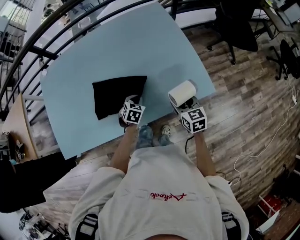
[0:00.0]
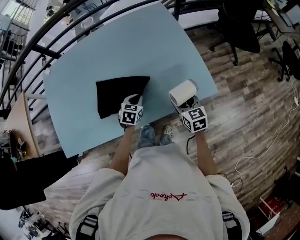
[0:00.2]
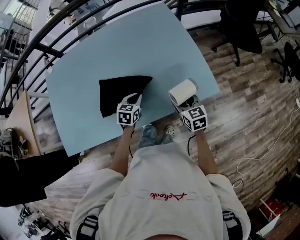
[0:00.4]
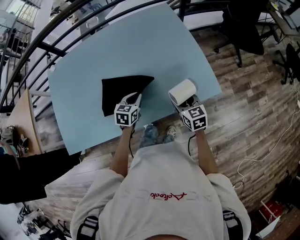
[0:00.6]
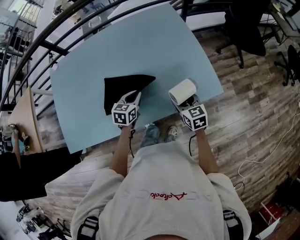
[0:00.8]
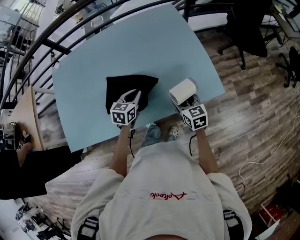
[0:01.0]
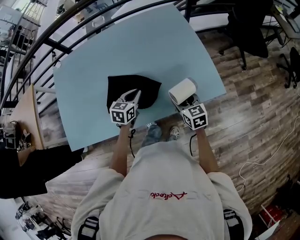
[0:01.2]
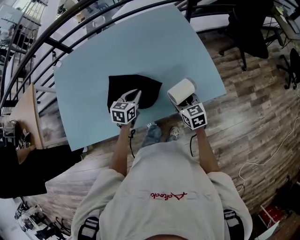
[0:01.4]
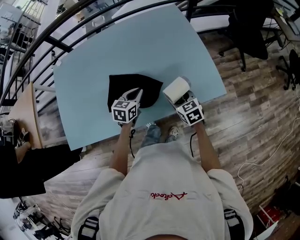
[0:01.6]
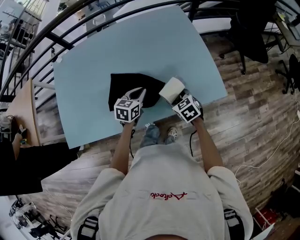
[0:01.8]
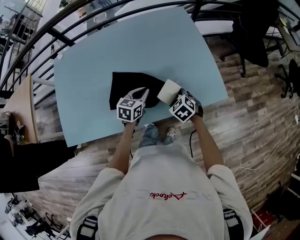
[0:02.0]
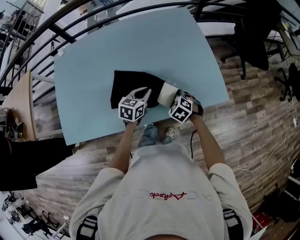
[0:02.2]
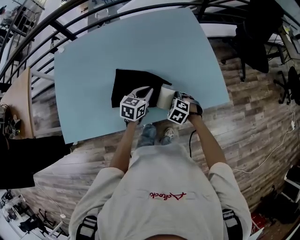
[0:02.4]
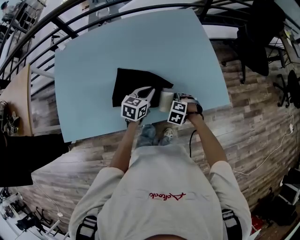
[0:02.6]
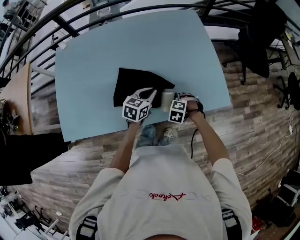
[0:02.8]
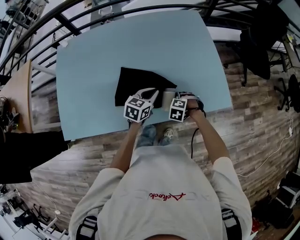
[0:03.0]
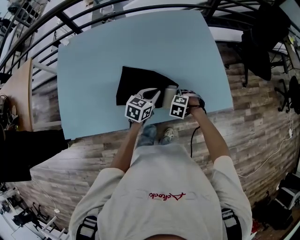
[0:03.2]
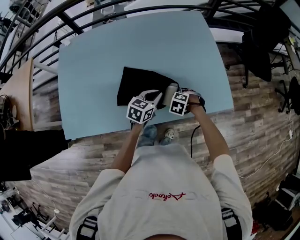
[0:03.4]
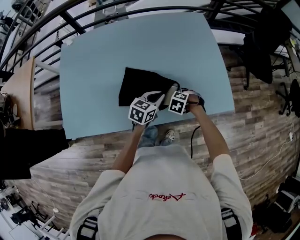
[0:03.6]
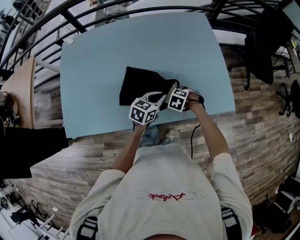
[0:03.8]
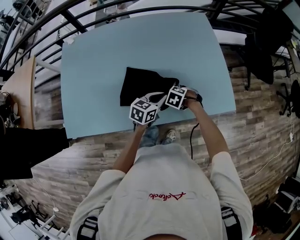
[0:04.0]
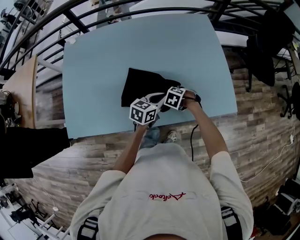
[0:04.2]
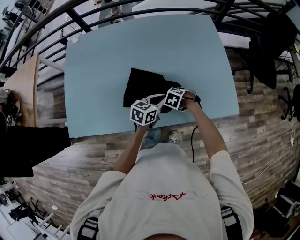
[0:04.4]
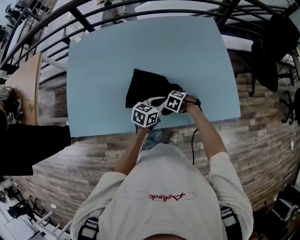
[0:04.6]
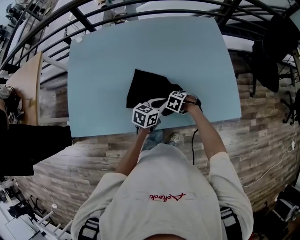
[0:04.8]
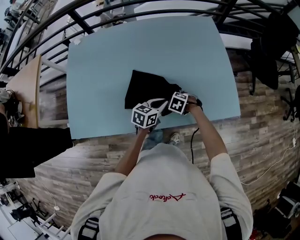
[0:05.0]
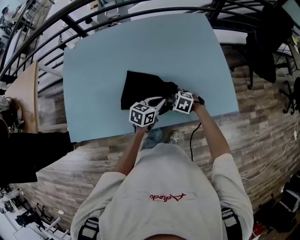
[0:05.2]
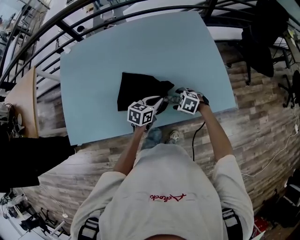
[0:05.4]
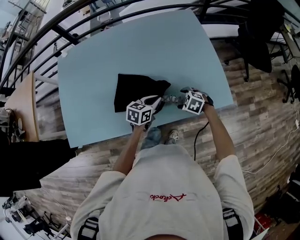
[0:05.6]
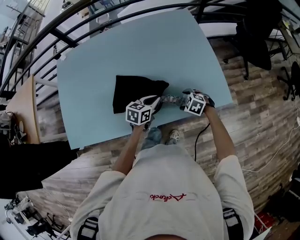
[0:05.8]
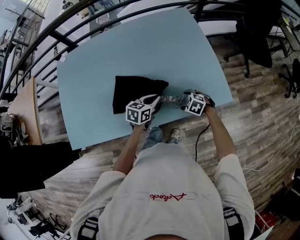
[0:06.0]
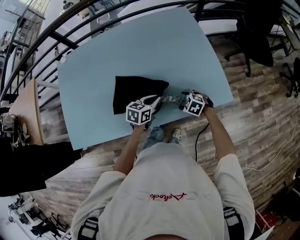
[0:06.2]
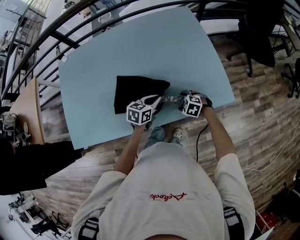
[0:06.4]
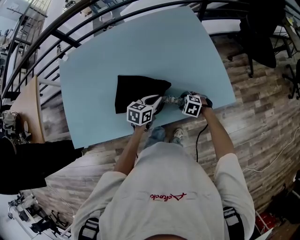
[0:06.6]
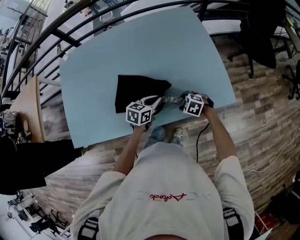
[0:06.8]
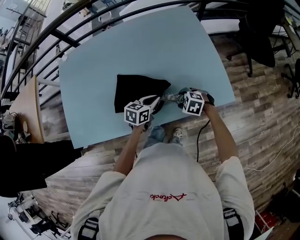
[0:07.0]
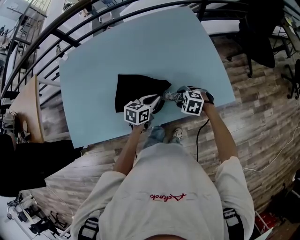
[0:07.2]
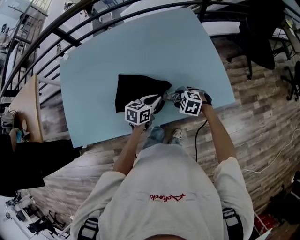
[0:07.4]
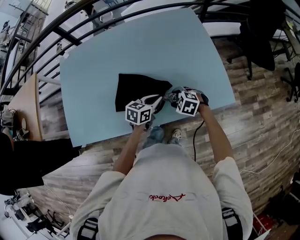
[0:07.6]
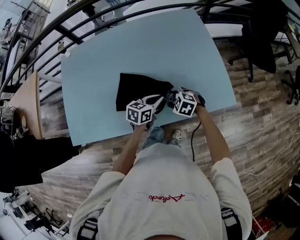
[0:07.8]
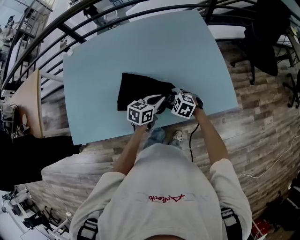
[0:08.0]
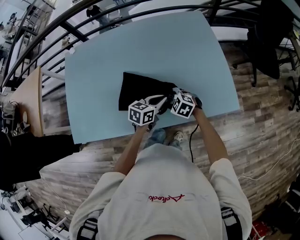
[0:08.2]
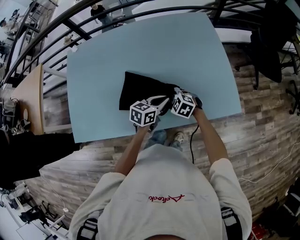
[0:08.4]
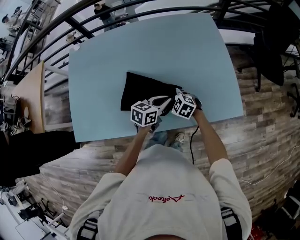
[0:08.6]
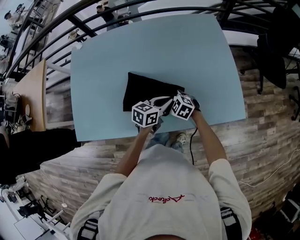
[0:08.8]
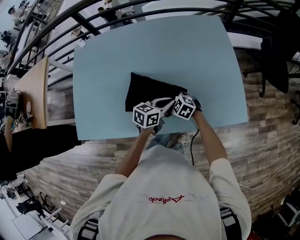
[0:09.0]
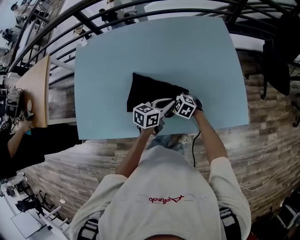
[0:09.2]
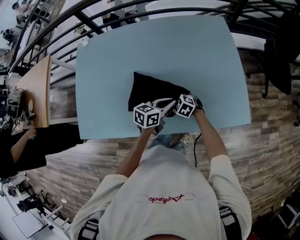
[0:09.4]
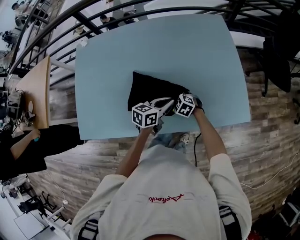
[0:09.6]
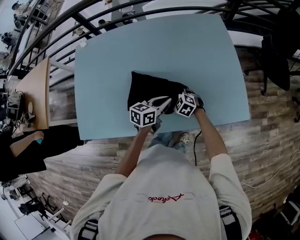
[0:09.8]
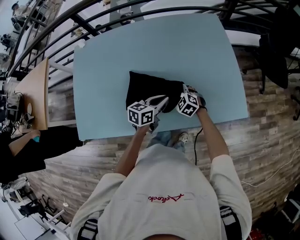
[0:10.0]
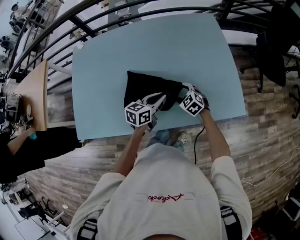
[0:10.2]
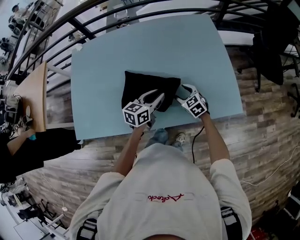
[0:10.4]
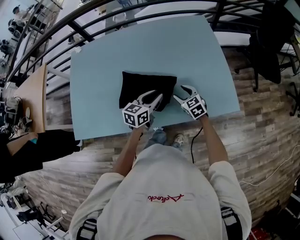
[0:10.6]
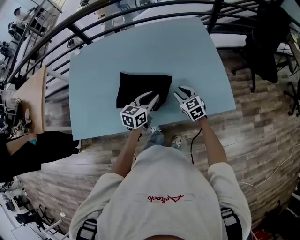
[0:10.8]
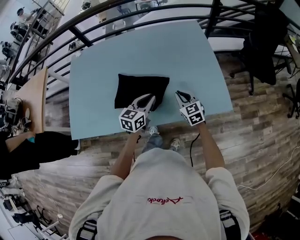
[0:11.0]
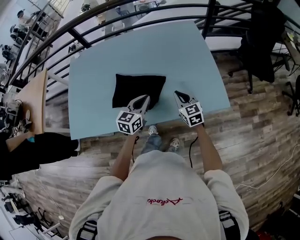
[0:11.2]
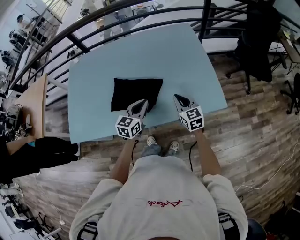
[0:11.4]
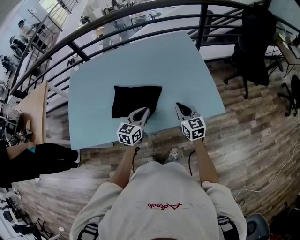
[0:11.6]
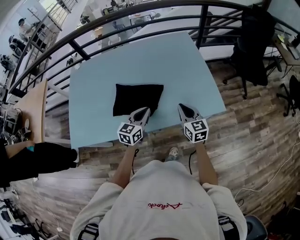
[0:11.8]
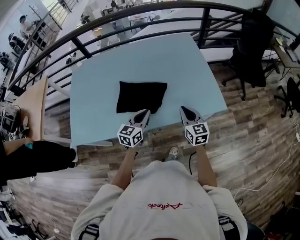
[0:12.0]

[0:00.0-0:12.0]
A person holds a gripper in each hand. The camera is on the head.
0:00.0 to 0:01.6: The right gripper moves to the left, approximately 10 cm. Meanwhile the left gripper is displaced upward and to the left by some 10 cm, and rotates some 30 degrees.
0:01.6 to 0:03.0: The right gripper shifts roughly 10 cm downward, and points its fingers approximately 40 degrees further downward.
0:03.0 to 0:04.4: The right gripper changes place by roughly 10 cm.
0:04.4 to 0:06.0: The right gripper changes place by about 15 cm. The left gripper moves roughly 5 cm.
0:06.0 to 0:07.6: The right gripper ends up some 10 cm from where it was.
0:07.6 to 0:09.0: The right gripper goes approximately 15 cm to the left and forward.
0:09.0 to 0:10.4: The right gripper moves to the right, approximately 10 cm, and turns by roughly 30 degrees.
0:10.4 to 0:12.0: The right gripper heads upward, backward and to the right, covering some 20 cm, swivels some 40 degrees, and closes up. The left gripper heads backward, covering roughly 10 cm, and closes its fingers.

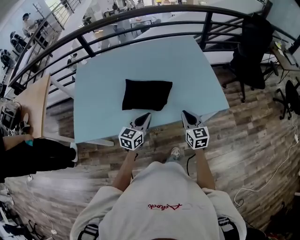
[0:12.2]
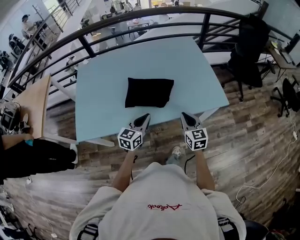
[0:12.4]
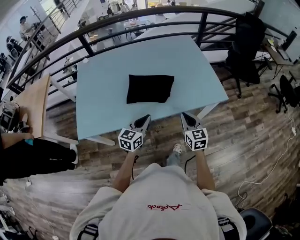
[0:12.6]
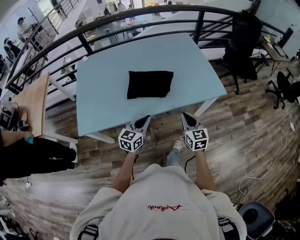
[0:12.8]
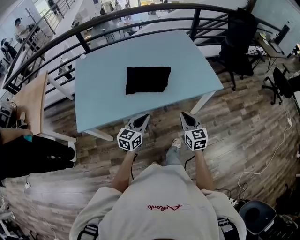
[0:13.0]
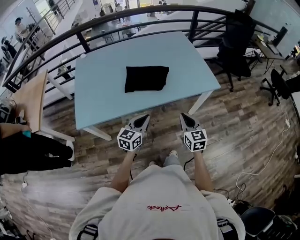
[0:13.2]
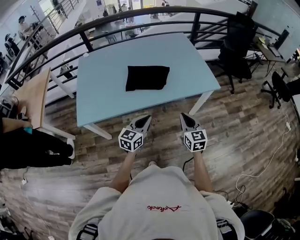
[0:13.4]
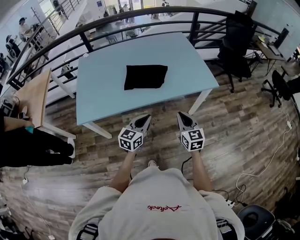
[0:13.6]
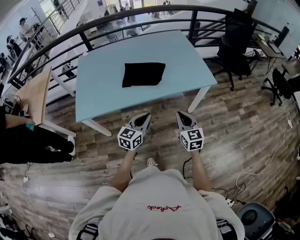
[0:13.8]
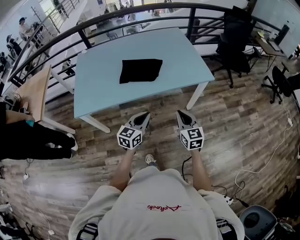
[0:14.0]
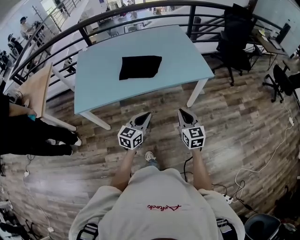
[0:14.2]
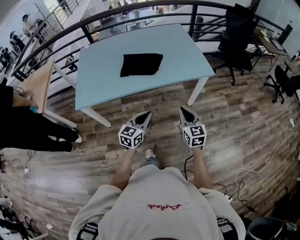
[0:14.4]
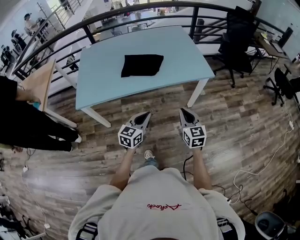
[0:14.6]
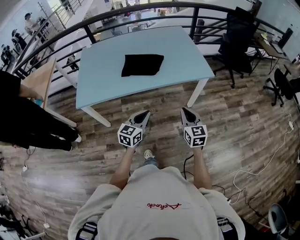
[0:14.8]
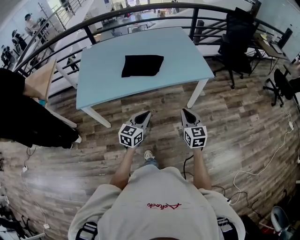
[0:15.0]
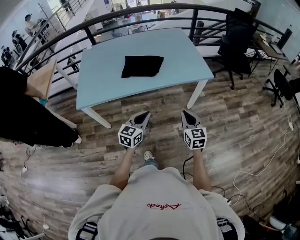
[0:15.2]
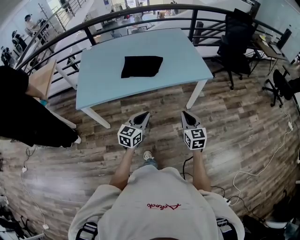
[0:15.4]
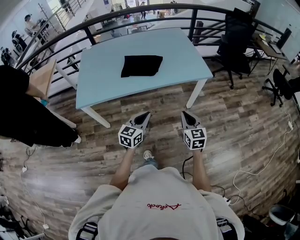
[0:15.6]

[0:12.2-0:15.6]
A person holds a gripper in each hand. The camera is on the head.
0:12.2 to 0:13.8: Both grippers travel together backward, about 25 cm.
0:13.8 to 0:15.6: The left gripper goes roughly 10 cm backward. The right gripper goes approximately 10 cm to the right and backward.

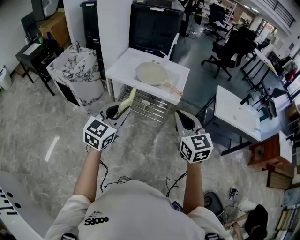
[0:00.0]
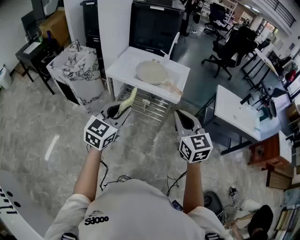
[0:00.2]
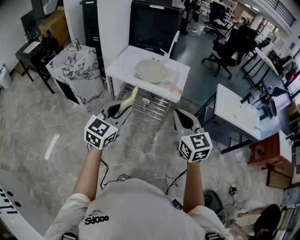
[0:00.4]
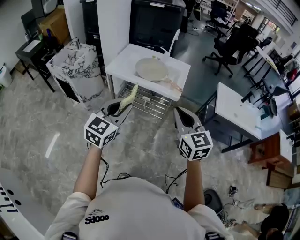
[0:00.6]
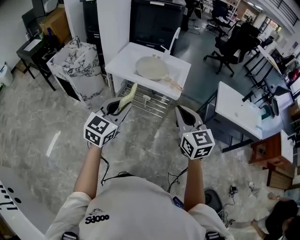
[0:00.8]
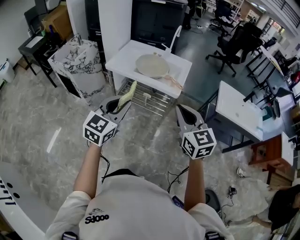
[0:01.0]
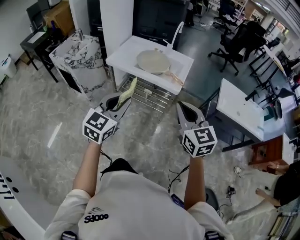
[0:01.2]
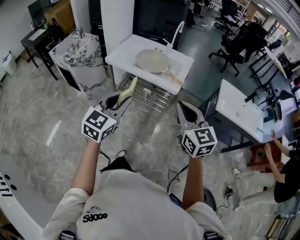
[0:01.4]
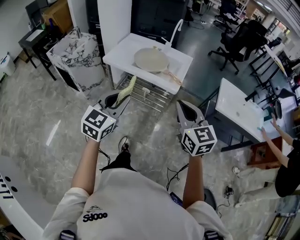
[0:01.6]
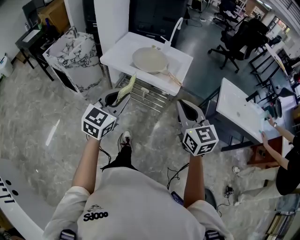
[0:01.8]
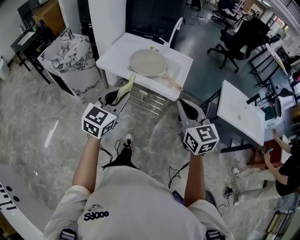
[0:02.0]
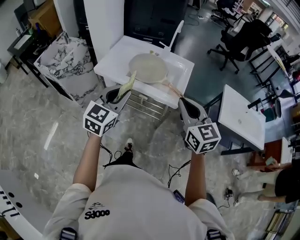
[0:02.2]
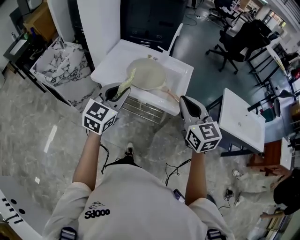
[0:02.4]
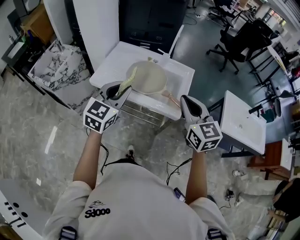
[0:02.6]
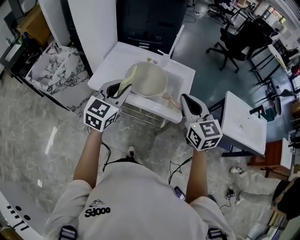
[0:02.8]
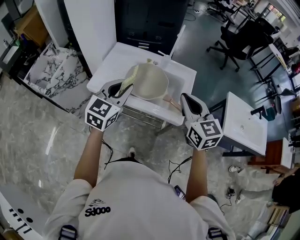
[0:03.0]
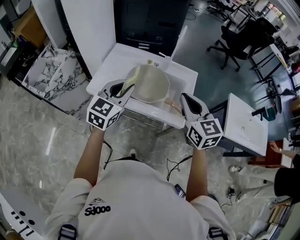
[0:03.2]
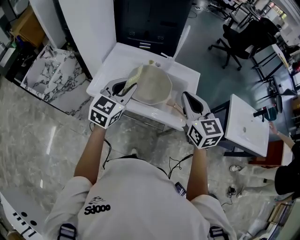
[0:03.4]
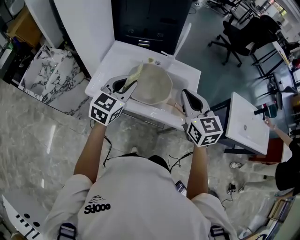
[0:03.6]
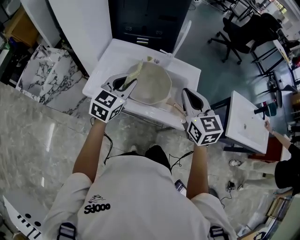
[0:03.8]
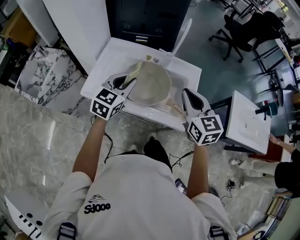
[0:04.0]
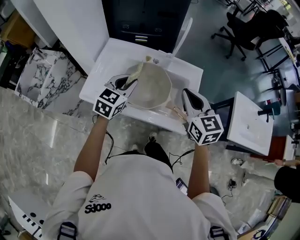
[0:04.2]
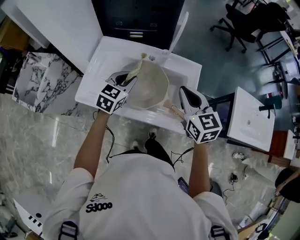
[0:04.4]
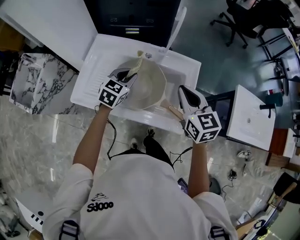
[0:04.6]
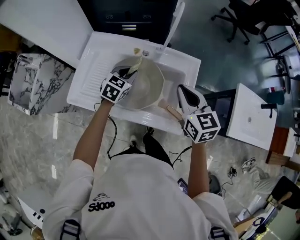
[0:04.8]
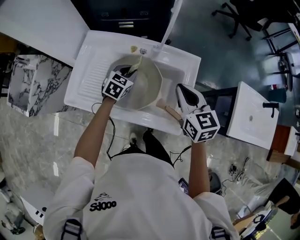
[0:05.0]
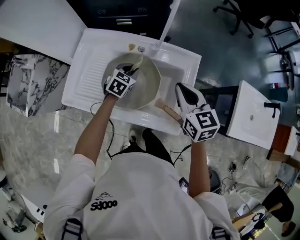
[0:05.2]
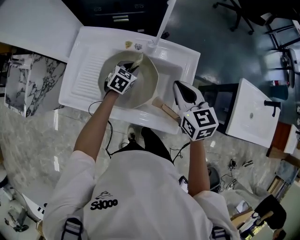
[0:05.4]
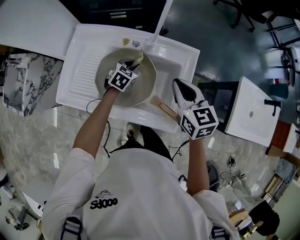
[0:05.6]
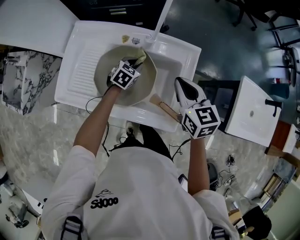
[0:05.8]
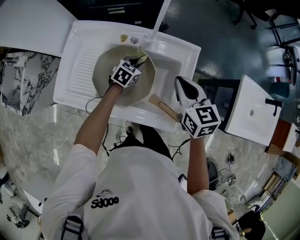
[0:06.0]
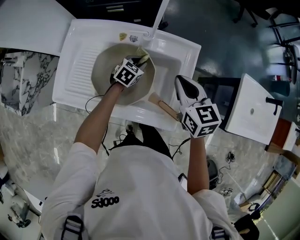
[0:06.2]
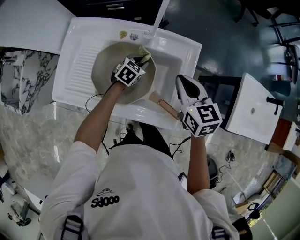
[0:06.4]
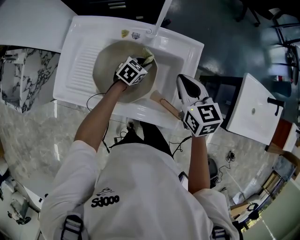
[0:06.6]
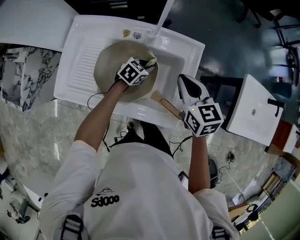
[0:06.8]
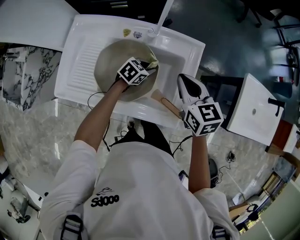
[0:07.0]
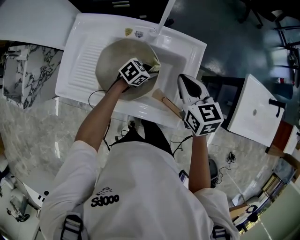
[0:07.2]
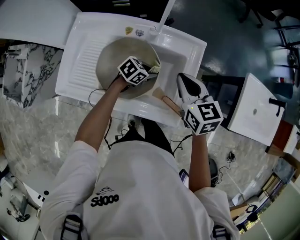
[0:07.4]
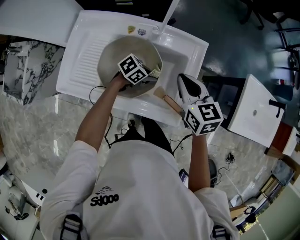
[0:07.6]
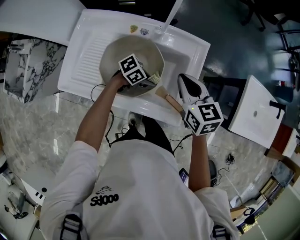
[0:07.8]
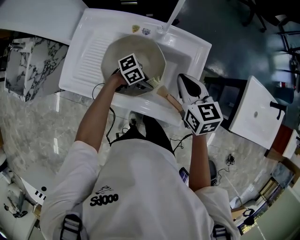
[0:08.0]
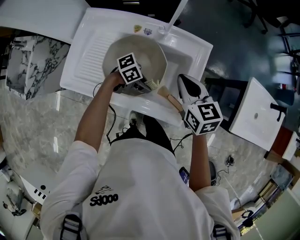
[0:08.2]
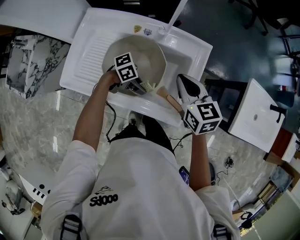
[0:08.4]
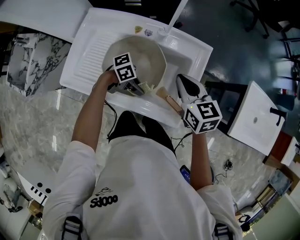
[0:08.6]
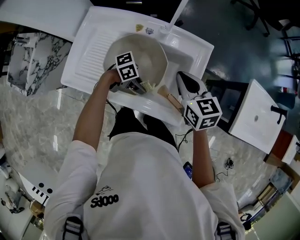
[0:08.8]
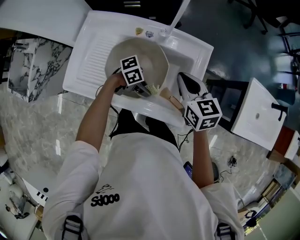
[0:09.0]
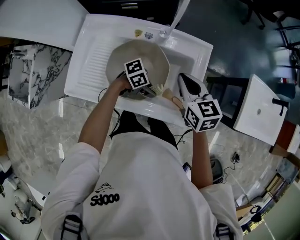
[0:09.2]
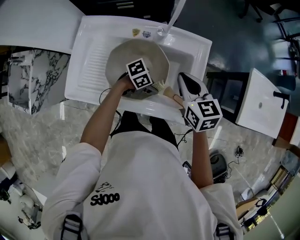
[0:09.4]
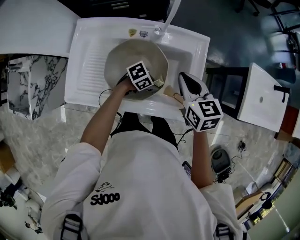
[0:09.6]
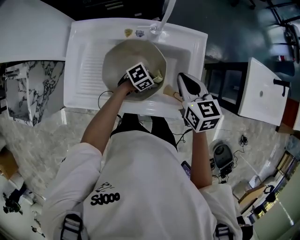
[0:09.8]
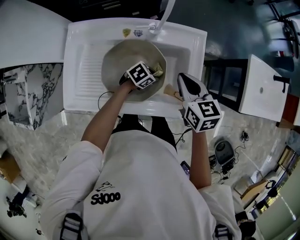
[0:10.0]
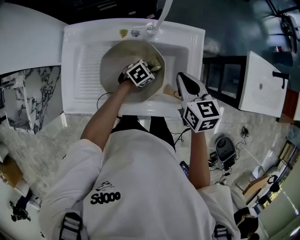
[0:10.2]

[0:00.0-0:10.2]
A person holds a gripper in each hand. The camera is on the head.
0:00.0 to 0:01.4: The grippers move only a little.
0:01.4 to 0:03.0: The two grippers go approximately 35 cm forward.
0:03.0 to 0:04.4: The grippers both shift forward and downward by approximately 20 cm.
0:04.4 to 0:05.8: The right gripper goes approximately 10 cm downward, forward and to the right; the left gripper moves downward, to the right and forward, approximately 25 cm, and rotates approximately 20 degrees.
0:05.8 to 0:07.2: The left gripper is displaced to the right and backward by about 10 cm, and turns by about 30 degrees.
0:07.2 to 0:08.8: The left gripper ends up approximately 15 cm from where it was, and rotates approximately 40 degrees.
0:08.8 to 0:10.2: The left gripper changes place by roughly 15 cm, and changes its angle by roughly 40 degrees.
